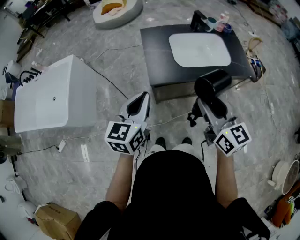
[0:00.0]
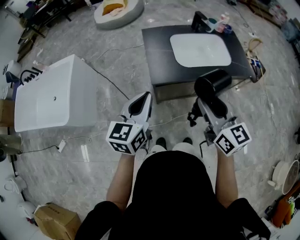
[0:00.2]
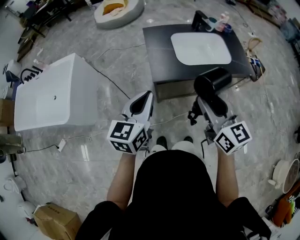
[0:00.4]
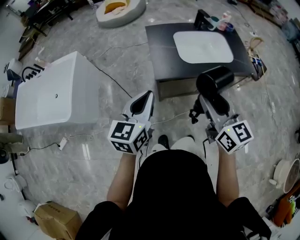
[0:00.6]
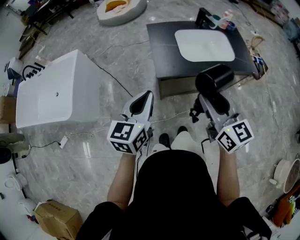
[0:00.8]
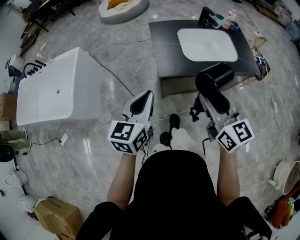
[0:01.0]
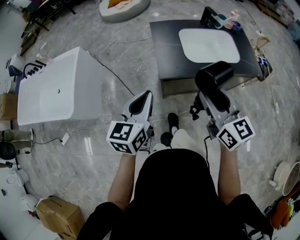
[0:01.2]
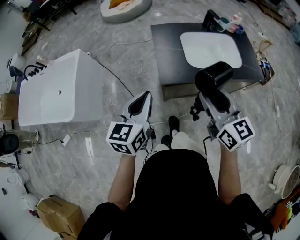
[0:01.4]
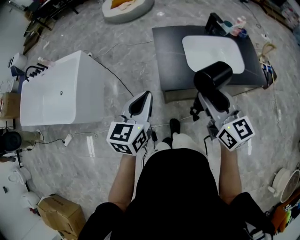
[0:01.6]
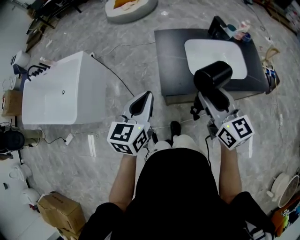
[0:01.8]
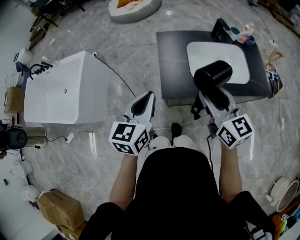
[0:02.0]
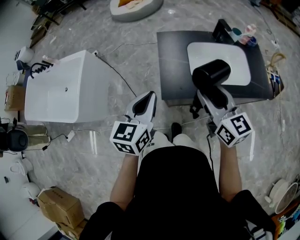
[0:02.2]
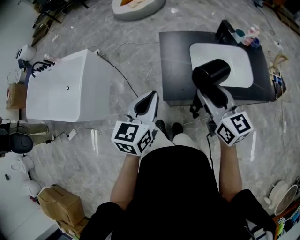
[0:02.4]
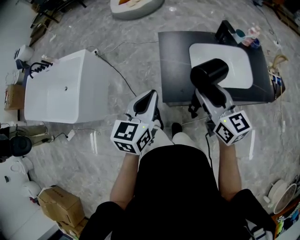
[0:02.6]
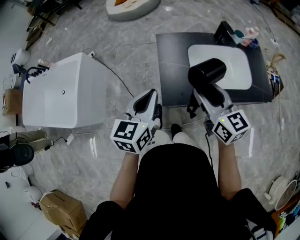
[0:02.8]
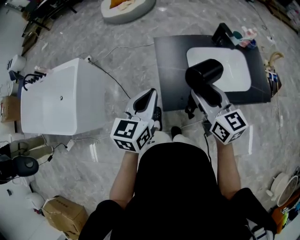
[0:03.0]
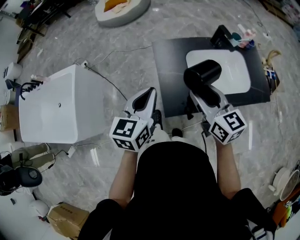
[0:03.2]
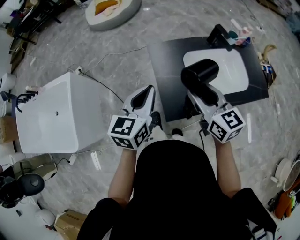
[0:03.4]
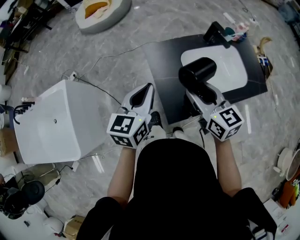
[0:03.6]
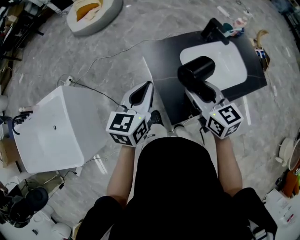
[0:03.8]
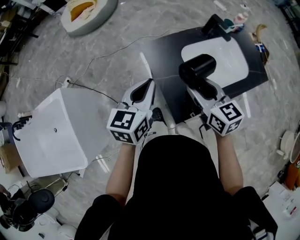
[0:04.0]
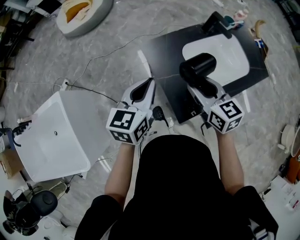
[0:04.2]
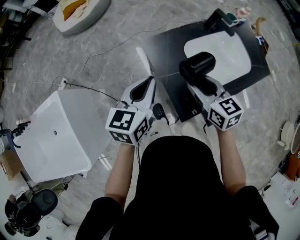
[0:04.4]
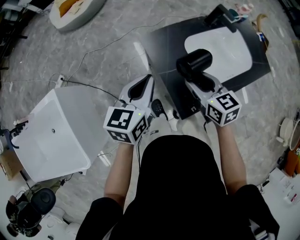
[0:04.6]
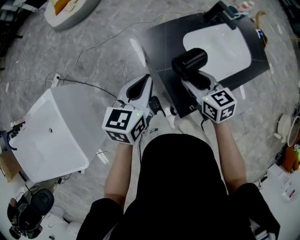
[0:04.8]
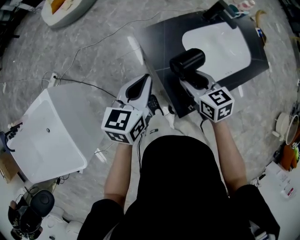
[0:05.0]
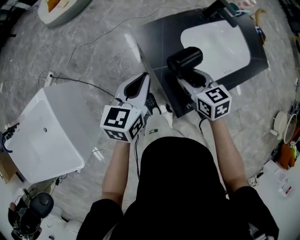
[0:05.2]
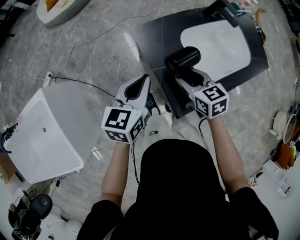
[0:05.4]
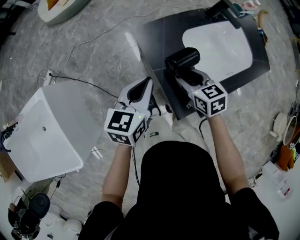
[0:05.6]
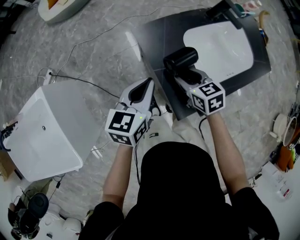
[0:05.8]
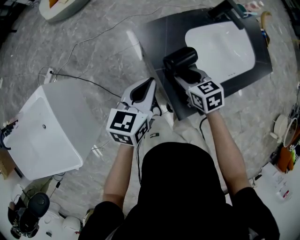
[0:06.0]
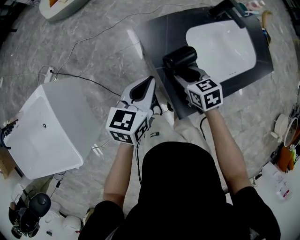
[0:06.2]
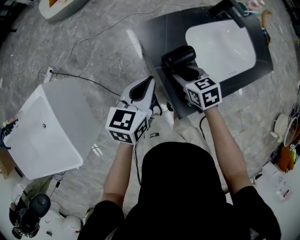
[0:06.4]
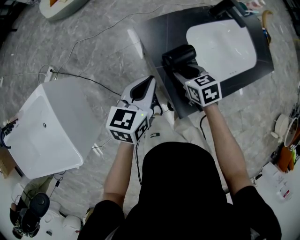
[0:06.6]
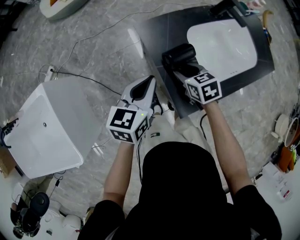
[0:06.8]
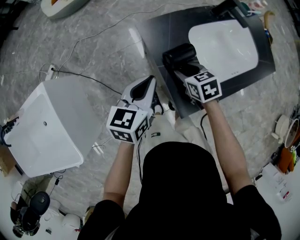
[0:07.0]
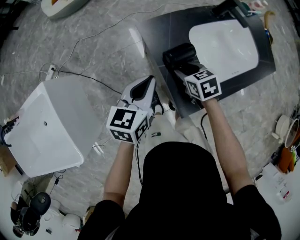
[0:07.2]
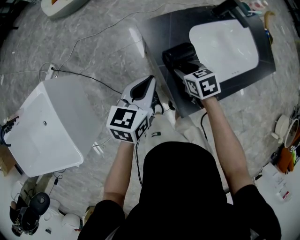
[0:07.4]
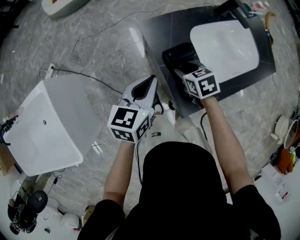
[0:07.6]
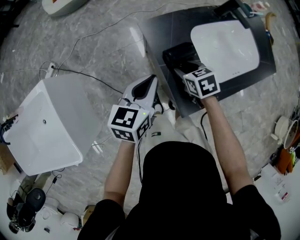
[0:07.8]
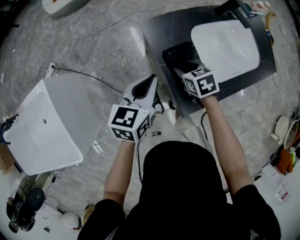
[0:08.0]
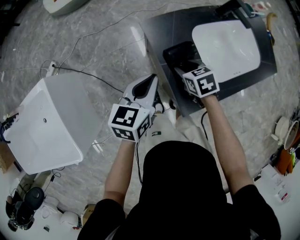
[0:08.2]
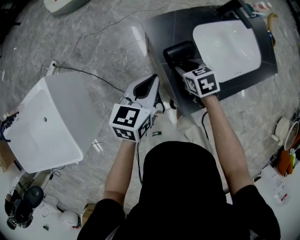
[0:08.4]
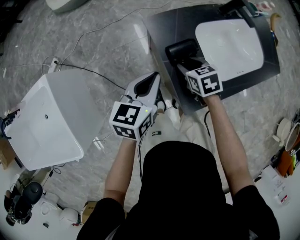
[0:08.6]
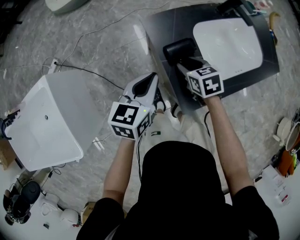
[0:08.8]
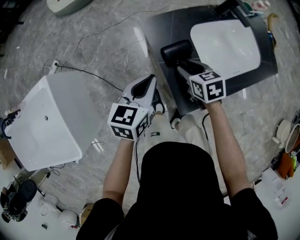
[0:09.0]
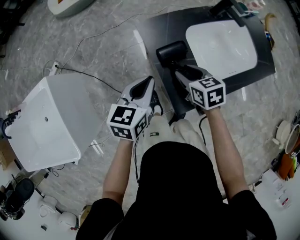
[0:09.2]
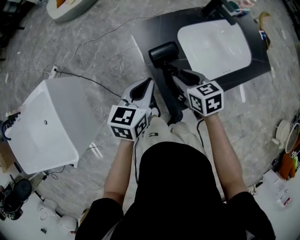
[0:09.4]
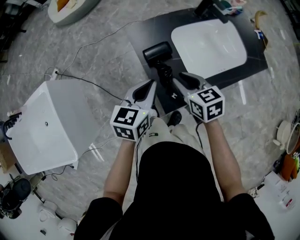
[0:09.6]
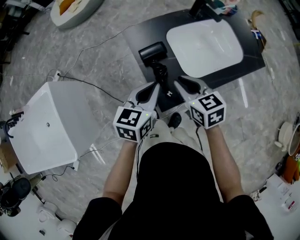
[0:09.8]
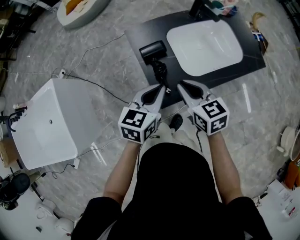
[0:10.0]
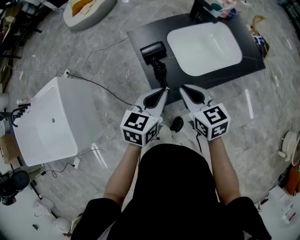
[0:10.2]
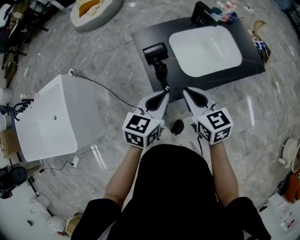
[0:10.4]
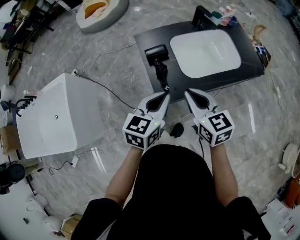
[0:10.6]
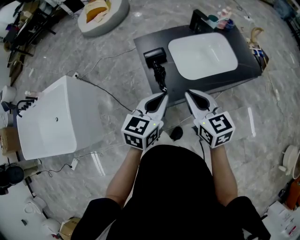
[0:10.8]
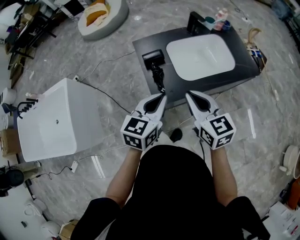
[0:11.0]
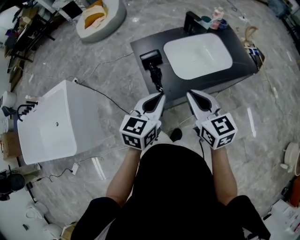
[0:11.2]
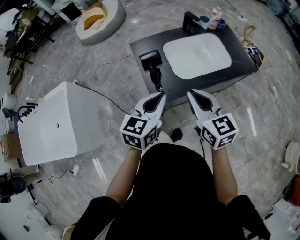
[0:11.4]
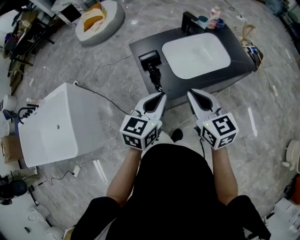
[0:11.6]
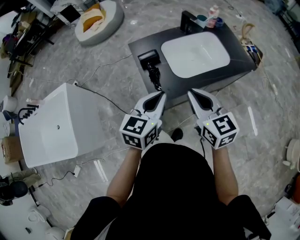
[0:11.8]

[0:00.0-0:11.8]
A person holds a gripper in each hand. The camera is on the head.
0:00.0 to 0:01.4: The right gripper ends up some 5 cm from where it was.
0:01.4 to 0:03.0: The two grippers go some 20 cm forward.
0:03.0 to 0:04.4: The left gripper is displaced forward by some 20 cm, and turns by approximately 20 degrees. Meanwhile the right gripper travels forward, downward and to the left by about 15 cm, and rotates about 20 degrees.
0:04.4 to 0:06.0: The right gripper moves downward, approximately 15 cm, and changes its angle by approximately 20 degrees; the left gripper travels downward by some 10 cm.
0:06.0 to 0:07.4: There are only small adjustments of the grippers.
0:07.4 to 0:08.8: Neither gripper changes place.
0:08.8 to 0:10.4: The left gripper heads to the right, backward and upward, covering about 25 cm, while the right gripper goes some 30 cm backward, upward and to the right, turns by some 30 degrees, and closes up.
0:10.4 to 0:11.8: Both grippers travel together upward and backward, approximately 10 cm.

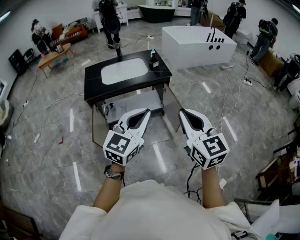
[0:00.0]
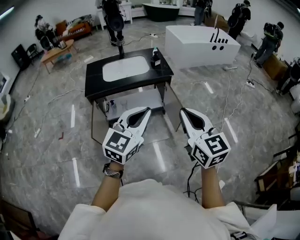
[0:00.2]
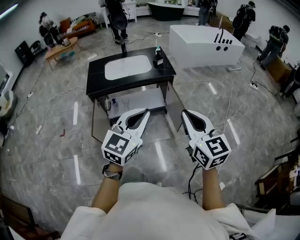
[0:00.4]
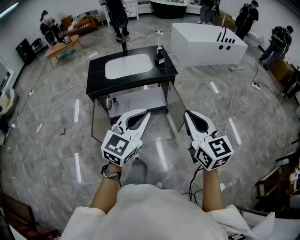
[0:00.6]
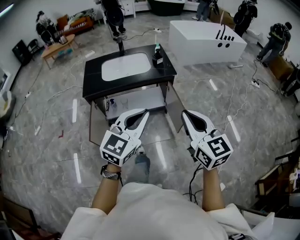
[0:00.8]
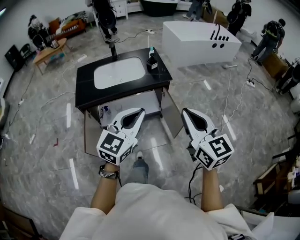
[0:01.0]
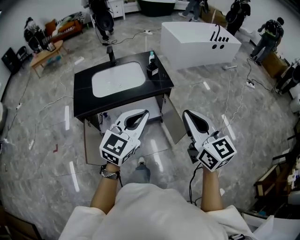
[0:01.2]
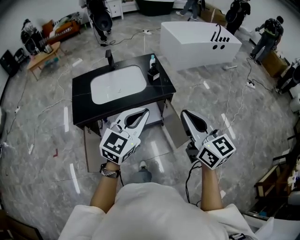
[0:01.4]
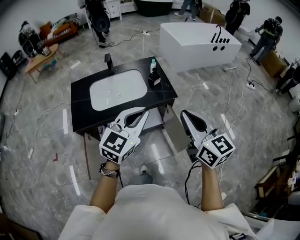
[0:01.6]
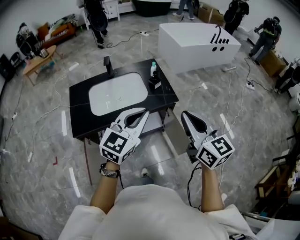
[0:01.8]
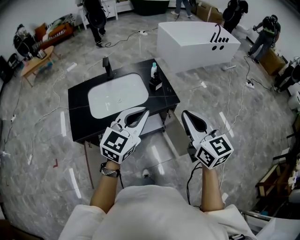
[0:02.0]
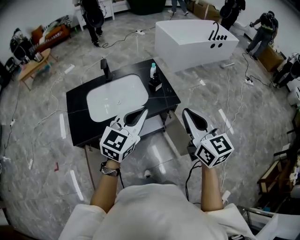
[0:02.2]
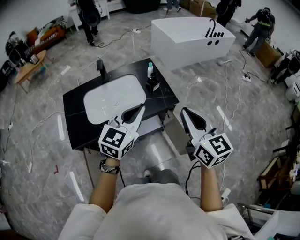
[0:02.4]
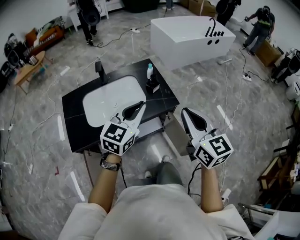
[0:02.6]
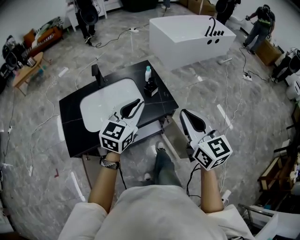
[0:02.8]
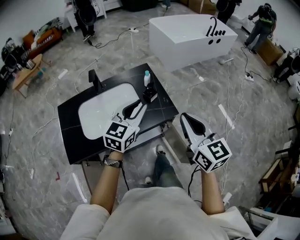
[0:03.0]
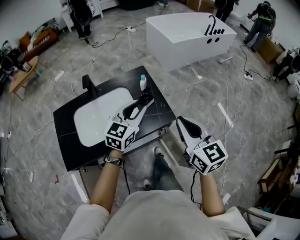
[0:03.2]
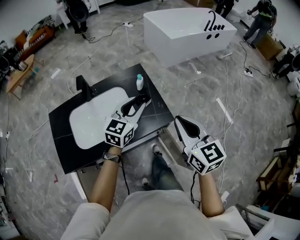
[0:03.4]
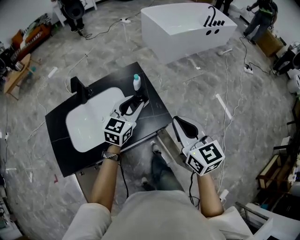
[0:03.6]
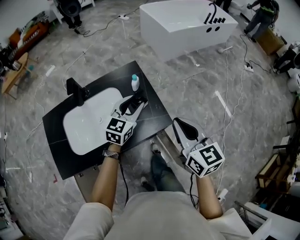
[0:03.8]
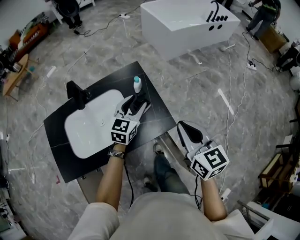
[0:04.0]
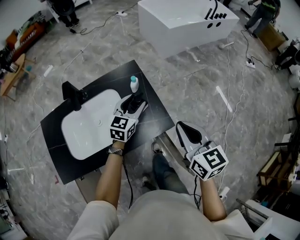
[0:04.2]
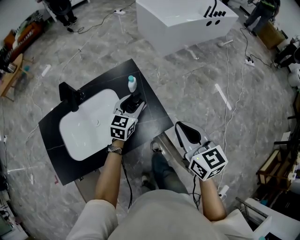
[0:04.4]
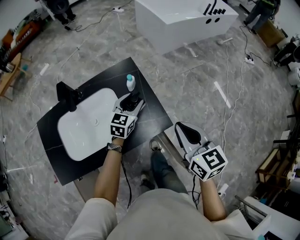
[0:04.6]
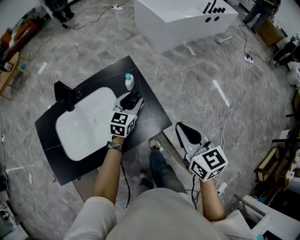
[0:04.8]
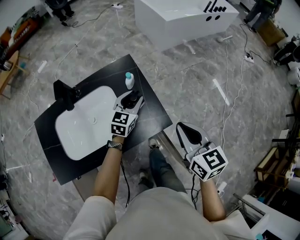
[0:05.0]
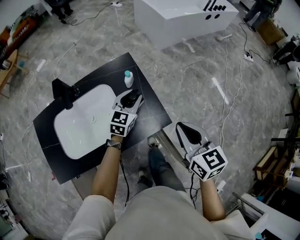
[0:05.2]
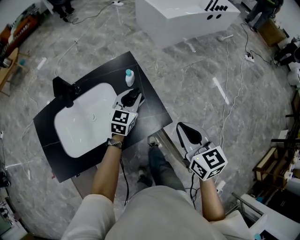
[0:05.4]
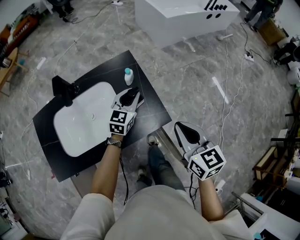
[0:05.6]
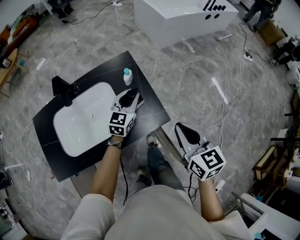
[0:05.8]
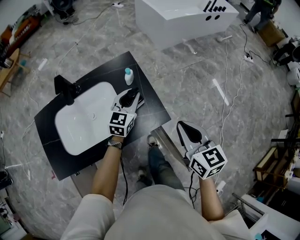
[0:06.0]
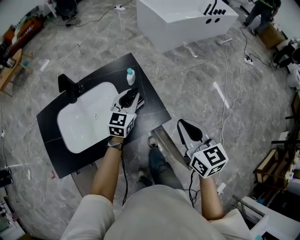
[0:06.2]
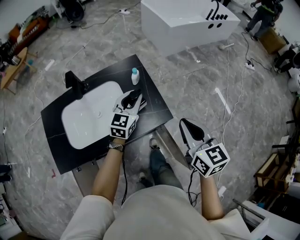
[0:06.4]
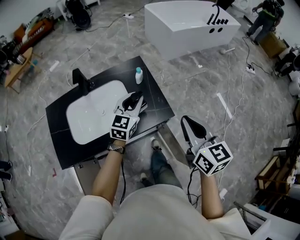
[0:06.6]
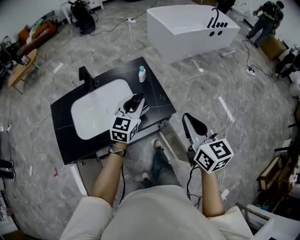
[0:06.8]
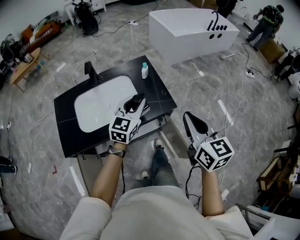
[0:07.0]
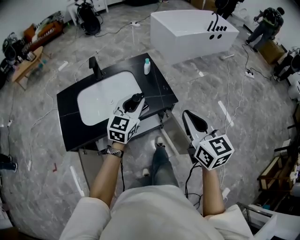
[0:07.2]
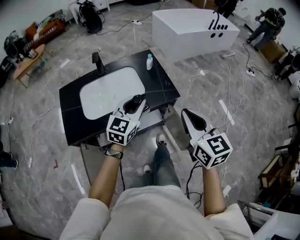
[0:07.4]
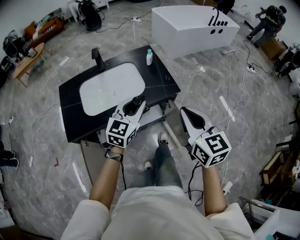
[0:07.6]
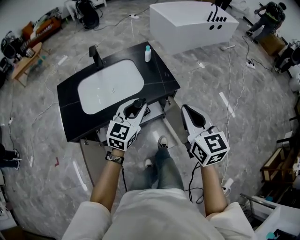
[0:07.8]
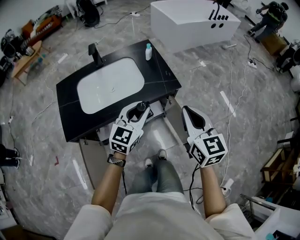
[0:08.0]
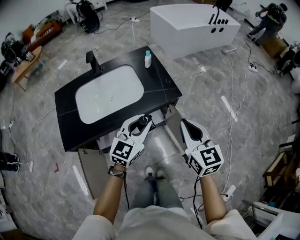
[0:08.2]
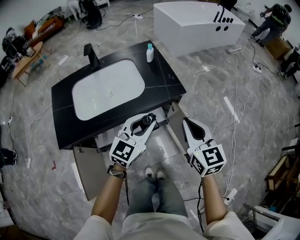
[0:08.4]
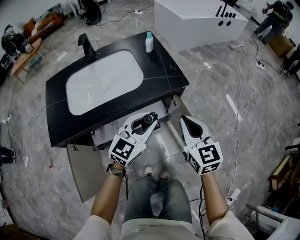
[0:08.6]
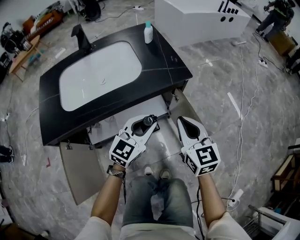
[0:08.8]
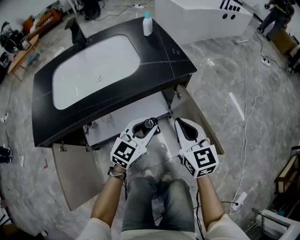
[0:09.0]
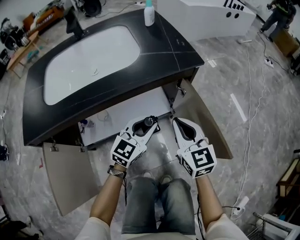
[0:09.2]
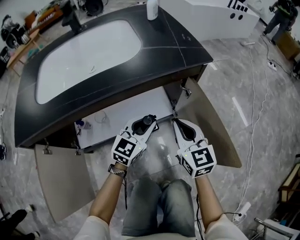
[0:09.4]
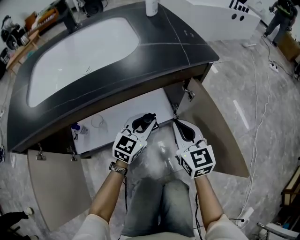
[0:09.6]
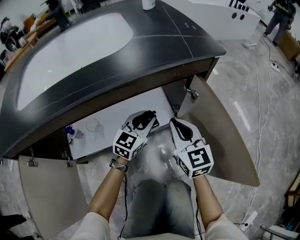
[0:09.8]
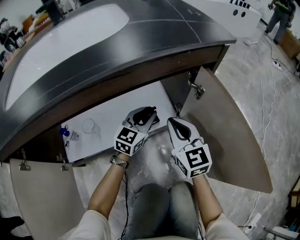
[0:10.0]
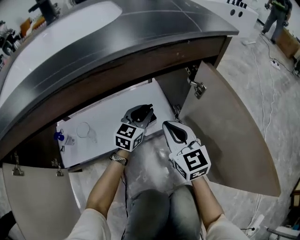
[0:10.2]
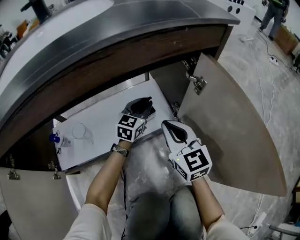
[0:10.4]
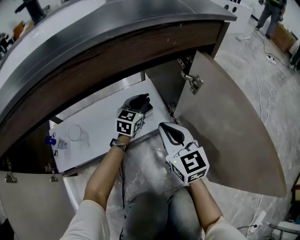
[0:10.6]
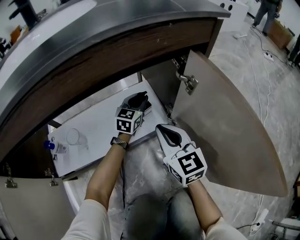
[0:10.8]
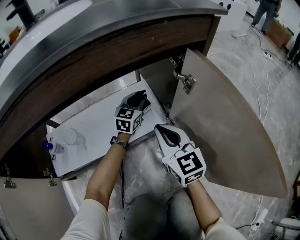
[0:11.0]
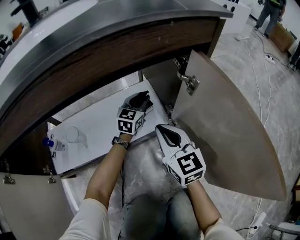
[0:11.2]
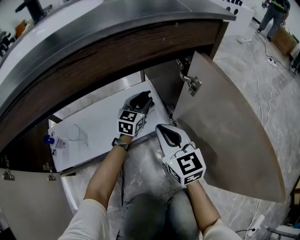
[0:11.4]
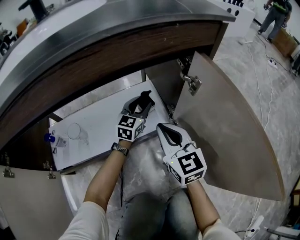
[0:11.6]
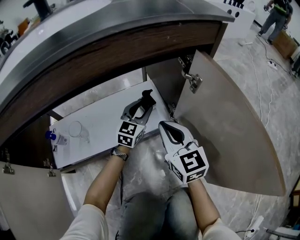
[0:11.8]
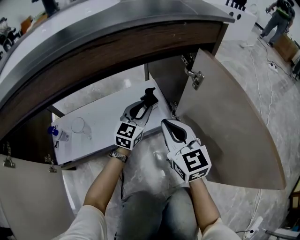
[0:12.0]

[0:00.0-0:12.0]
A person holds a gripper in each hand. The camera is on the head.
0:00.0 to 0:01.6: The grippers both shift forward by approximately 35 cm.
0:01.6 to 0:03.0: The two grippers go approximately 20 cm forward. The left gripper opens up.
0:03.0 to 0:04.4: The right gripper travels forward and downward by some 20 cm. The left gripper travels forward and downward by about 30 cm, and opens its fingers.
0:04.4 to 0:06.0: The left gripper closes up.
0:06.0 to 0:07.6: The left gripper travels backward by approximately 30 cm. Meanwhile the right gripper heads backward and upward, covering about 25 cm.
0:07.6 to 0:09.0: The grippers both shift downward by some 35 cm.
0:09.0 to 0:10.4: The right gripper is displaced downward by some 30 cm. The left gripper shifts approximately 40 cm downward and forward.
0:10.4 to 0:12.0: The grippers stay close to where they were, moving slightly.
